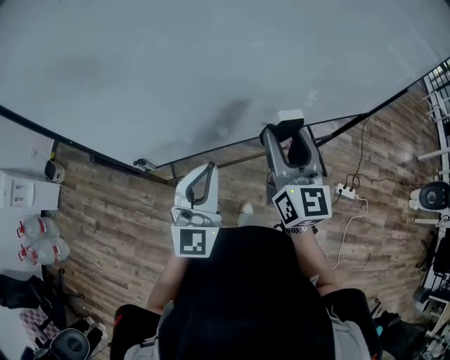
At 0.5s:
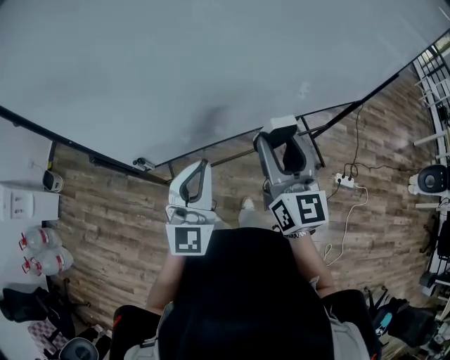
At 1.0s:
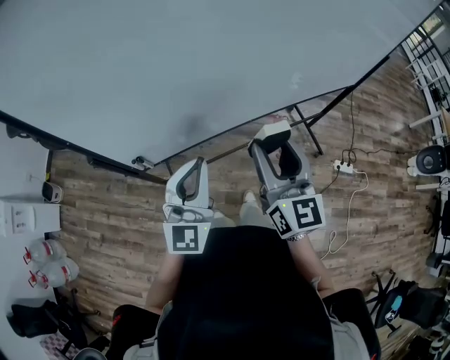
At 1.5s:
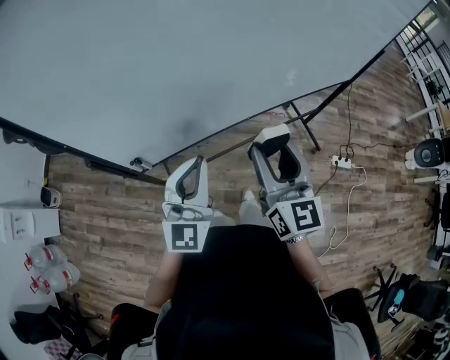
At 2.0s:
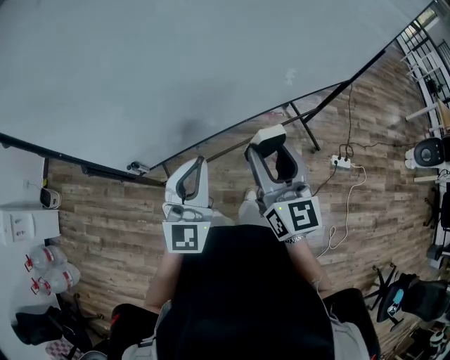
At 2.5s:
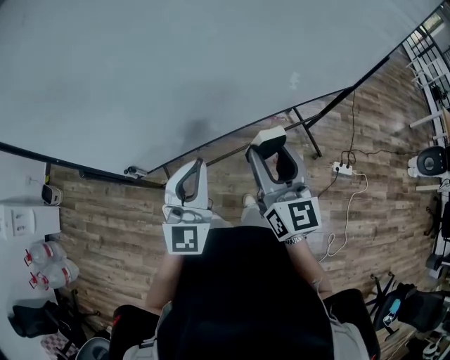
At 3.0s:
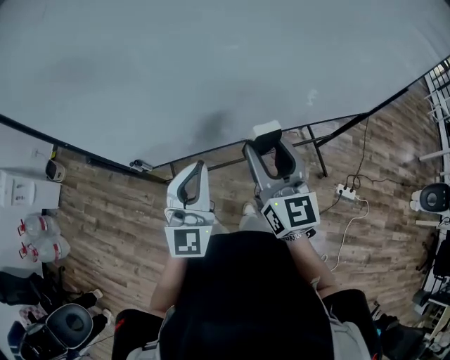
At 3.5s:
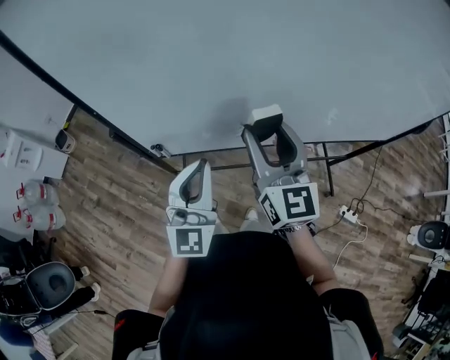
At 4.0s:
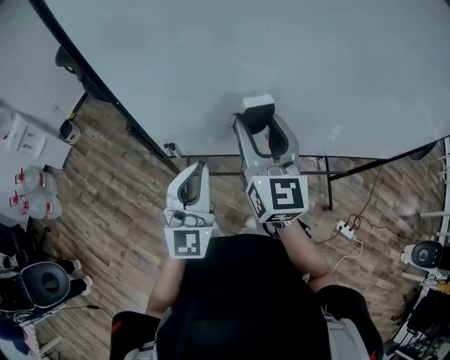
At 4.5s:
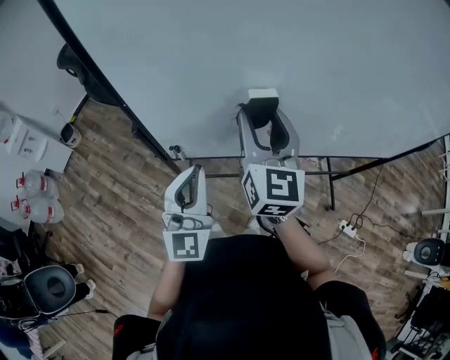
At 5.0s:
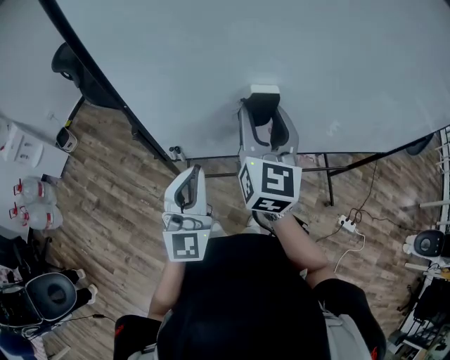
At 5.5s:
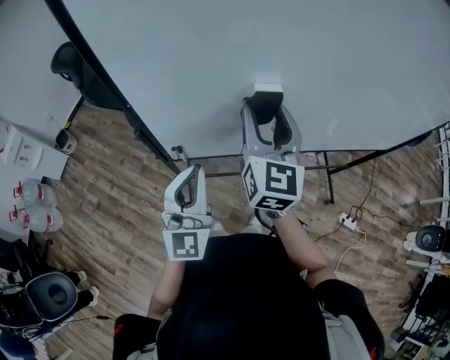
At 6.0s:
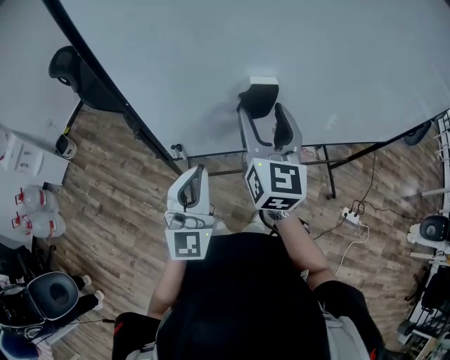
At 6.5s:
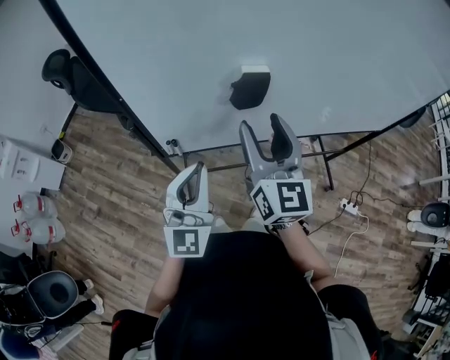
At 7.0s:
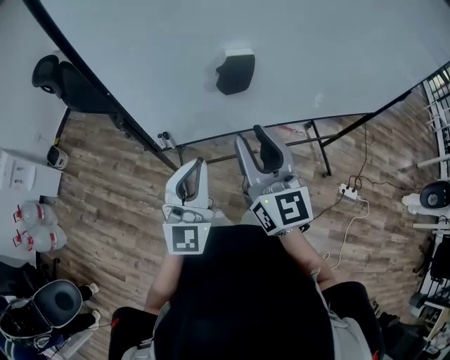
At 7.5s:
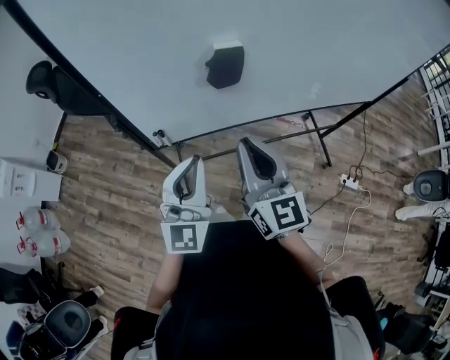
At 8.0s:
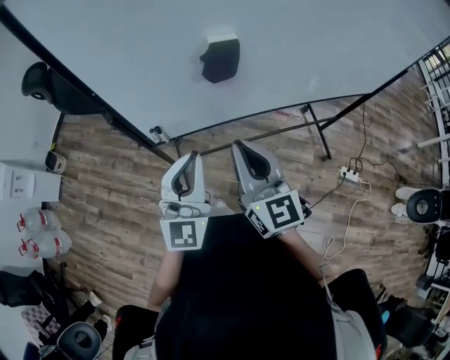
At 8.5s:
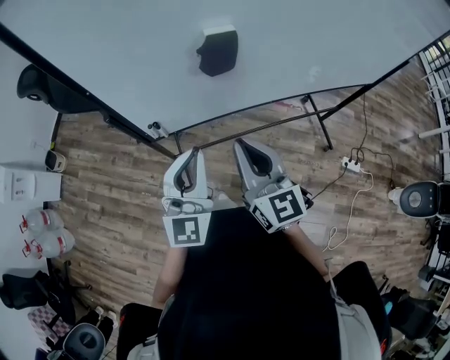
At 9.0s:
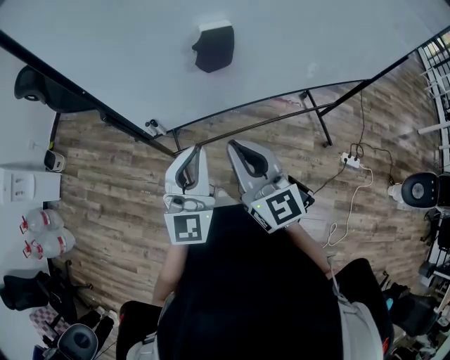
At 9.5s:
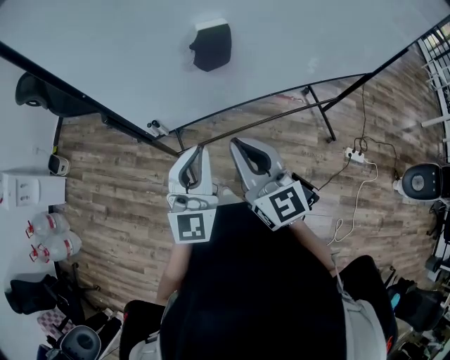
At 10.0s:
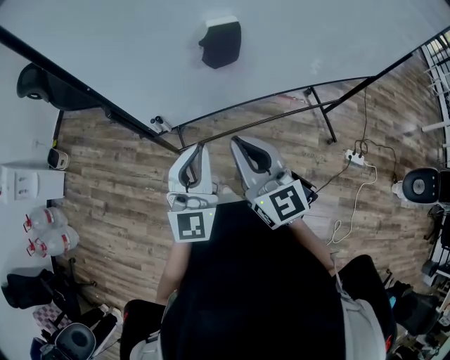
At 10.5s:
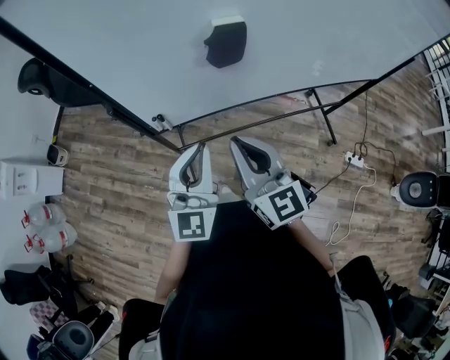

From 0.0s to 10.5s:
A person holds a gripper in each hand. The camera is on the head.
From 0.0s to 2.0s: The right gripper goes roughly 10 cm backward.
From 2.0s to 4.0s: The left gripper goes about 5 cm to the left, and swivels about 30 degrees; the right gripper moves to the left, forward and upward, about 15 cm, and turns by some 20 degrees.
From 4.0s to 6.5s: The left gripper changes place by approximately 5 cm.
From 6.5s to 8.5s: The right gripper travels backward and downward by about 15 cm, and closes.
From 8.5s to 10.5s: The grippers stay close to where they were, moving slightly.

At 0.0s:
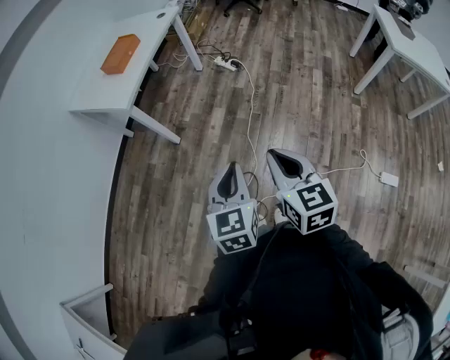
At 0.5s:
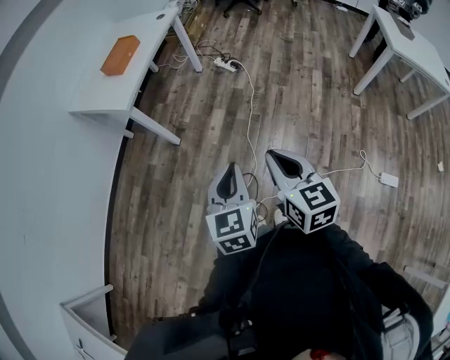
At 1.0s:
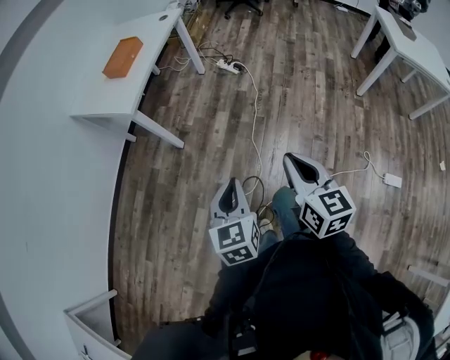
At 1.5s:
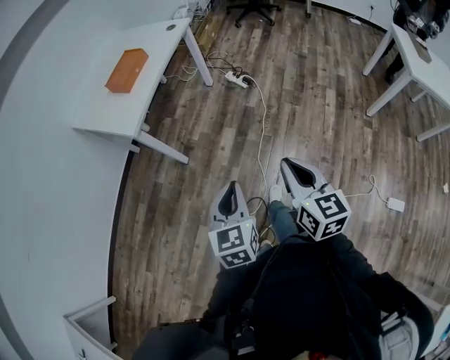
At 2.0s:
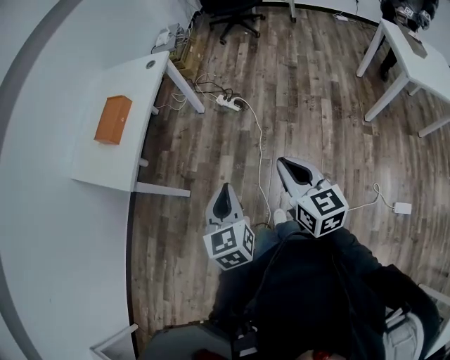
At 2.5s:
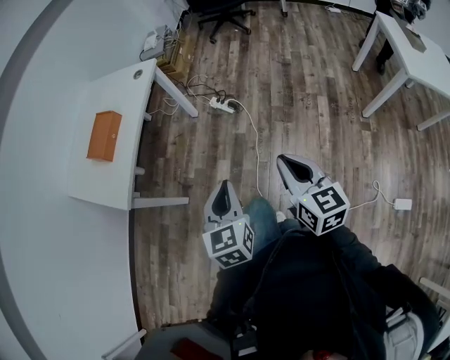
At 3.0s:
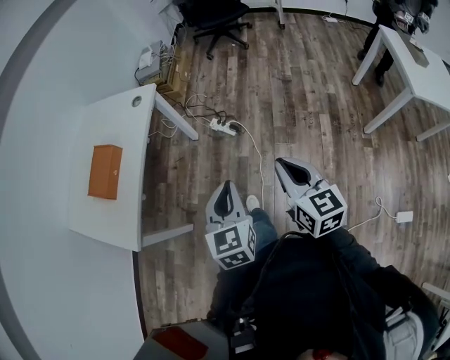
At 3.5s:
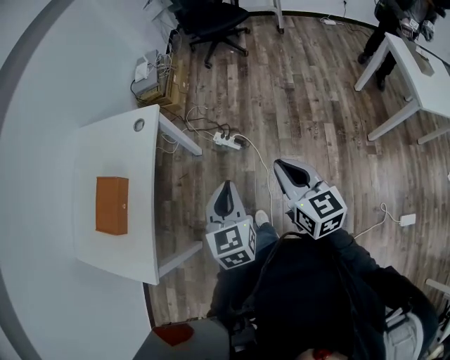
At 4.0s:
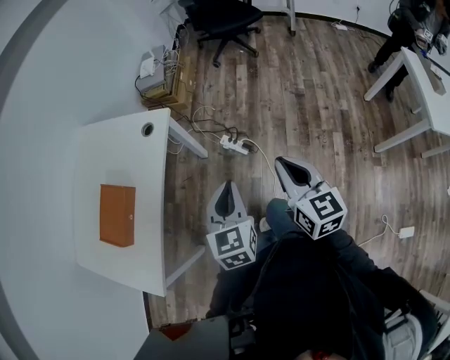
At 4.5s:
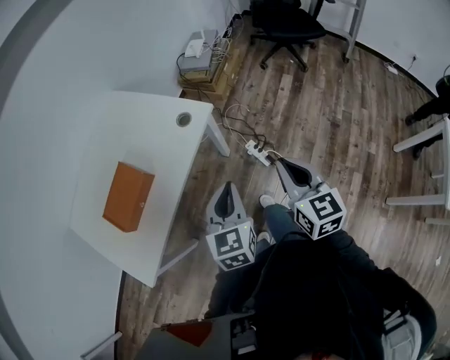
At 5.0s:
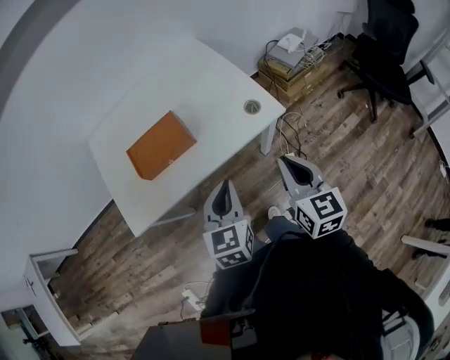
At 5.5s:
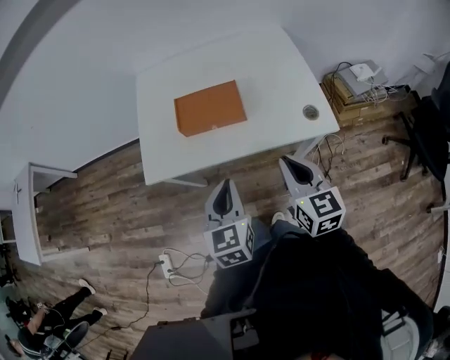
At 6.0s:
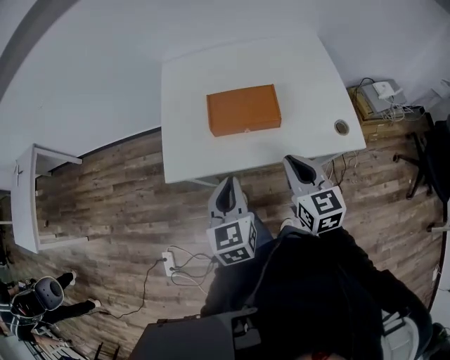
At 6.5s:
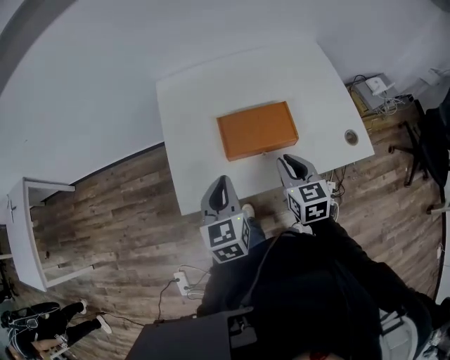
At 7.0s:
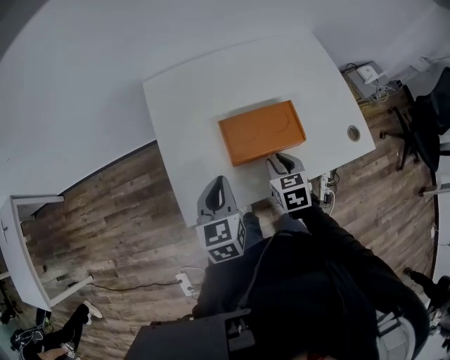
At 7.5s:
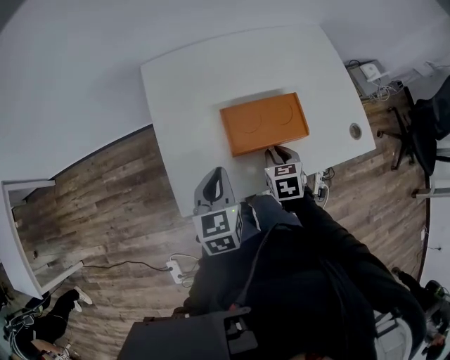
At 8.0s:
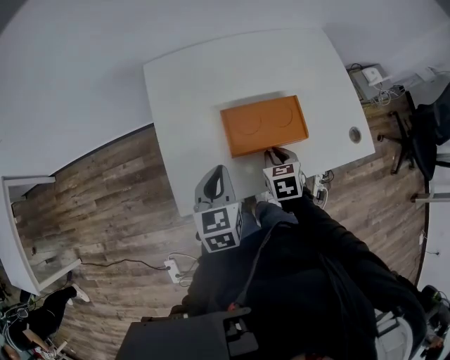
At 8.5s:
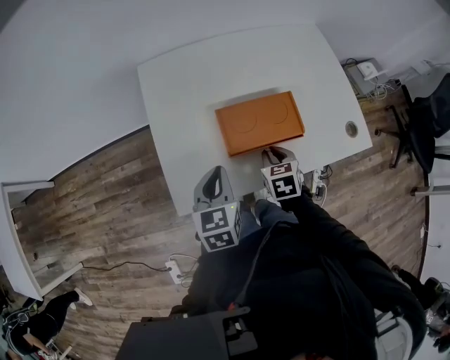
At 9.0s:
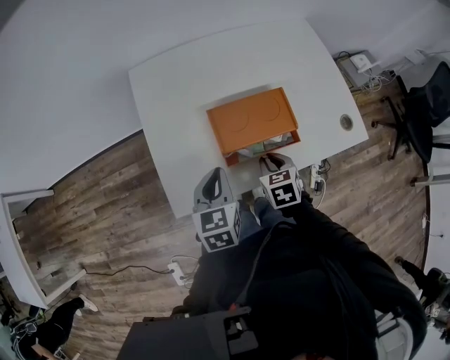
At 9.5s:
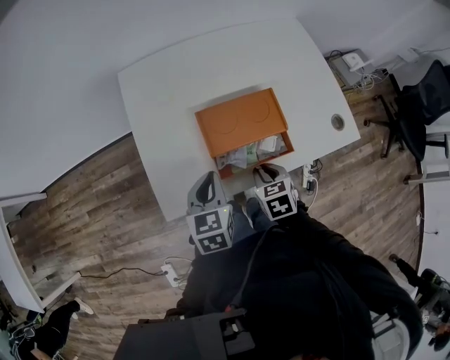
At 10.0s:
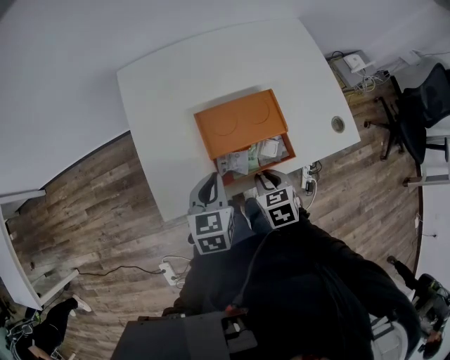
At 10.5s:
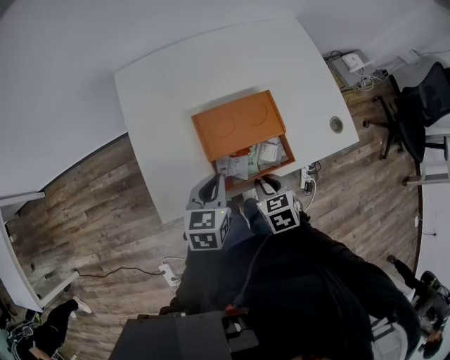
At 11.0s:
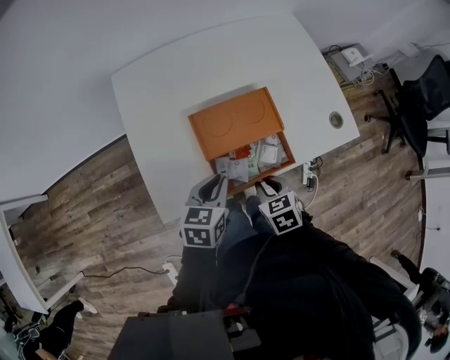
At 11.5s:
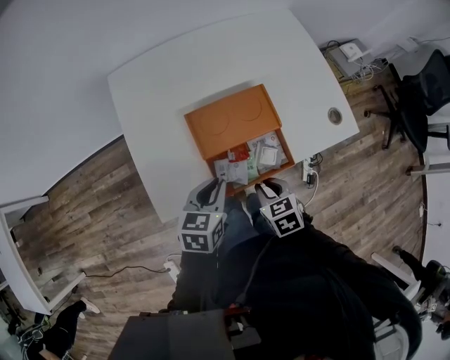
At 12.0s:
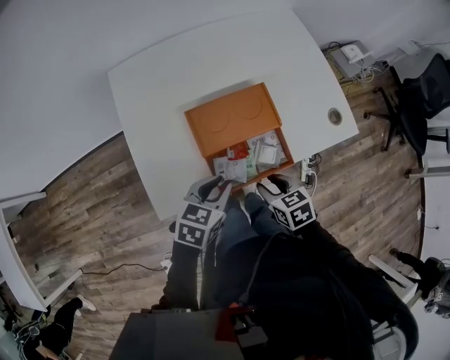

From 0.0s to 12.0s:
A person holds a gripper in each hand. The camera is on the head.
From 0.0s to 2.0s: The two grippers go some 30 cm forward.
From 2.0s to 4.0s: Both grippers are carried forward, approximately 50 cm.
From 4.0s to 6.0s: The right gripper shifts by roughly 40 cm, and rotates roughly 80 degrees; the left gripper shifts by approximately 35 cm, and rotates approximately 80 degrees.
From 6.0s to 8.0s: The left gripper goes some 20 cm forward and to the left; the right gripper goes about 25 cm downward, forward and to the left, and angles its fingers downward, by about 30 degrees.
From 8.0s to 10.0s: The right gripper travels backward by some 10 cm, while the left gripper changes place by approximately 5 cm.
From 10.0s to 12.0s: The left gripper heads to the right, covering approximately 5 cm, and rotates some 30 degrees.

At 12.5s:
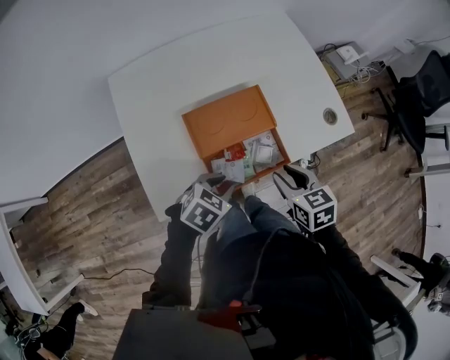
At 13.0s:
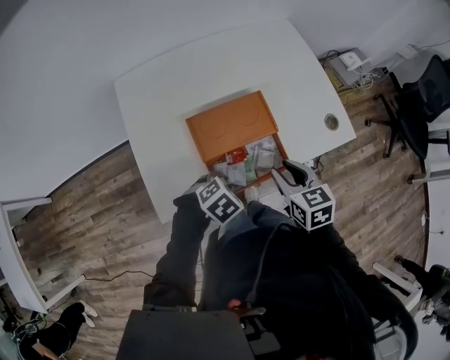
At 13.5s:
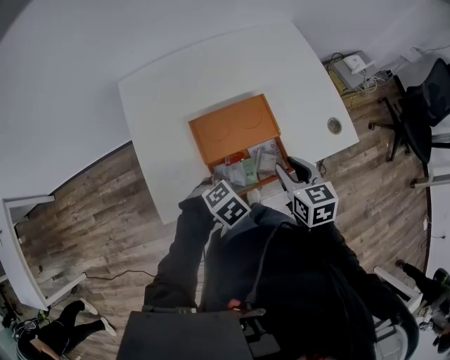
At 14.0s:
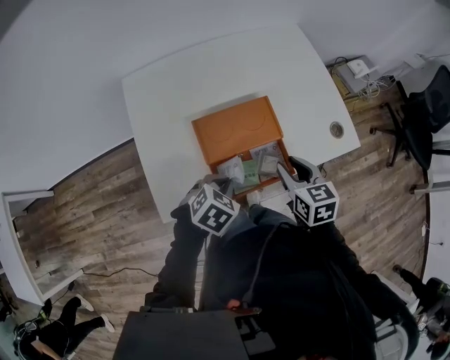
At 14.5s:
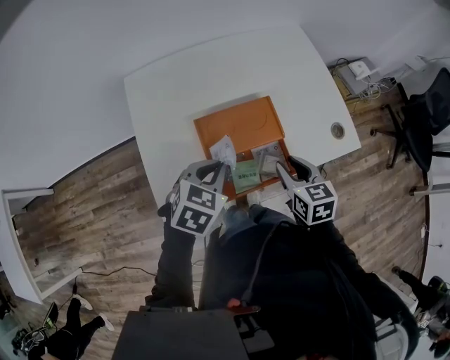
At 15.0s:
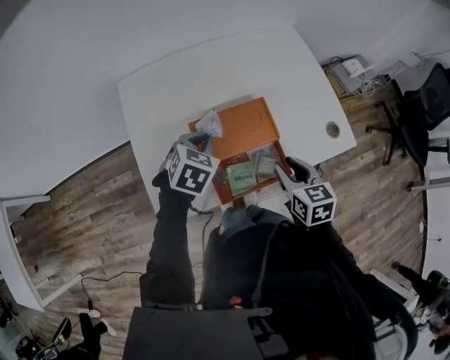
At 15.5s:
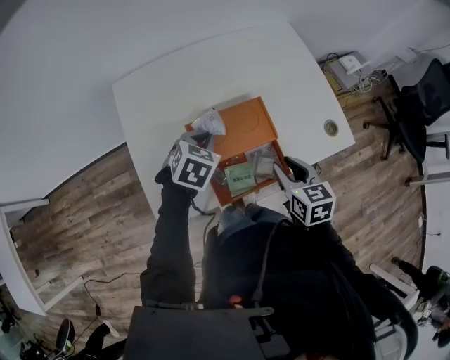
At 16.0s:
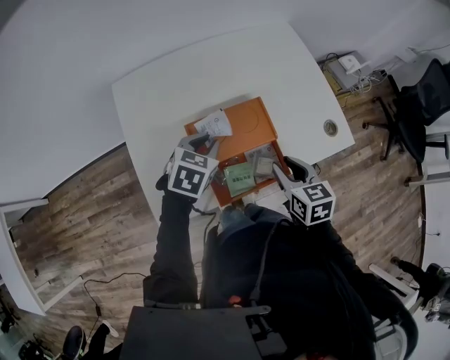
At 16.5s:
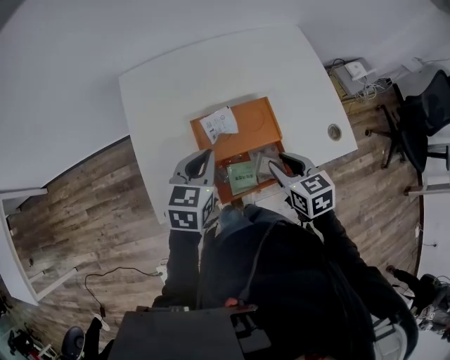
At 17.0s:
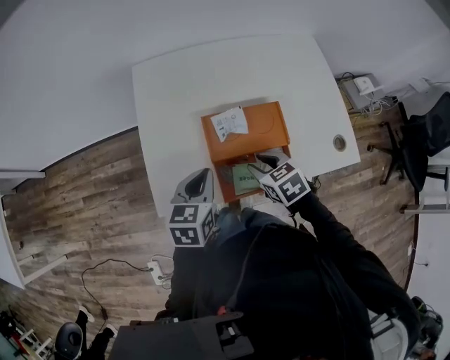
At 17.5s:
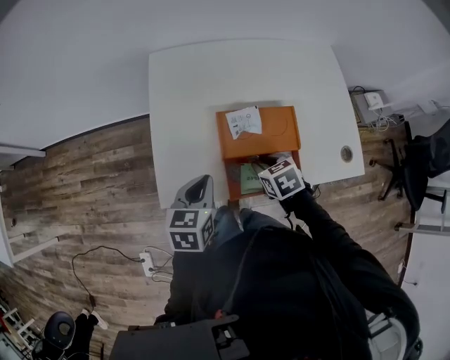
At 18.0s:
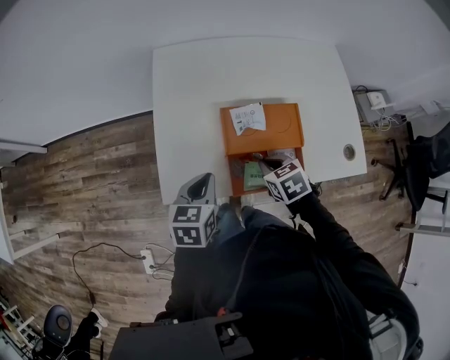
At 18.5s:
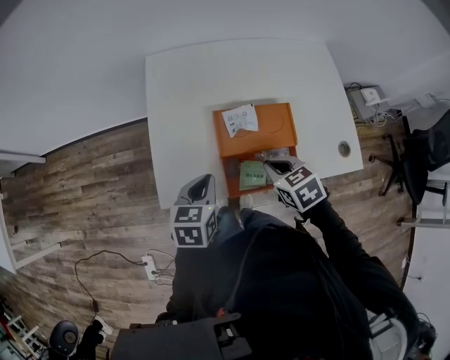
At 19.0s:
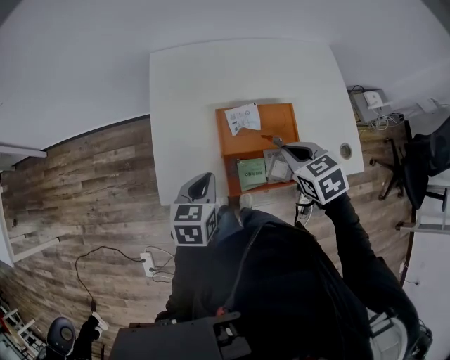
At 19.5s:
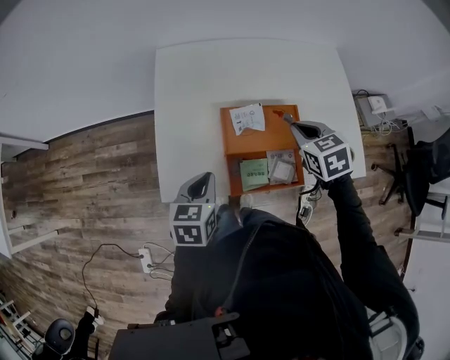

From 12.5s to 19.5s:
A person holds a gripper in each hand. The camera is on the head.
From 12.5s to 14.5s: The left gripper moves upward and forward, about 10 cm, and closes its fingers. The right gripper travels forward by about 5 cm.
From 14.5s to 16.0s: The left gripper moves forward, roughly 10 cm.
From 16.0s to 17.5s: The right gripper ends up roughly 15 cm from where it was, and changes its angle by about 30 degrees; the left gripper moves about 15 cm, and turns by some 40 degrees.
From 17.5s to 19.5s: The right gripper shifts some 15 cm upward, to the right and forward, and closes up.
